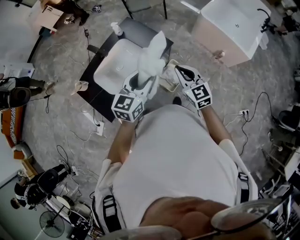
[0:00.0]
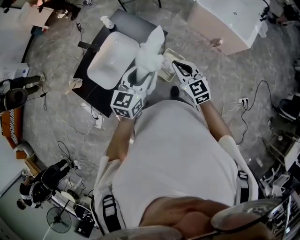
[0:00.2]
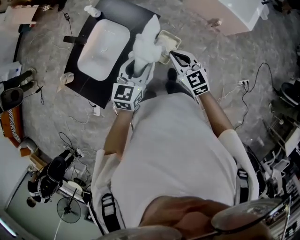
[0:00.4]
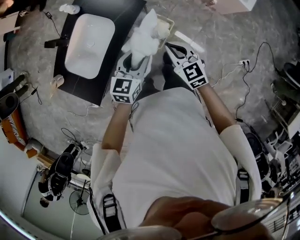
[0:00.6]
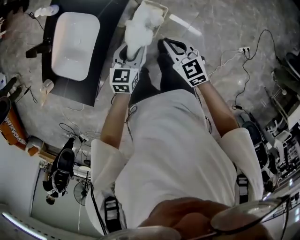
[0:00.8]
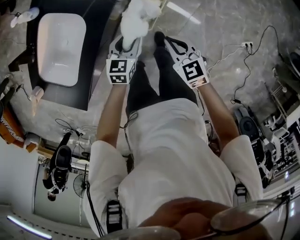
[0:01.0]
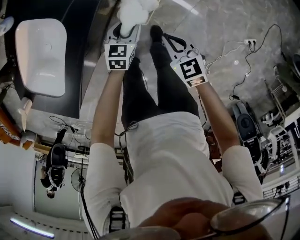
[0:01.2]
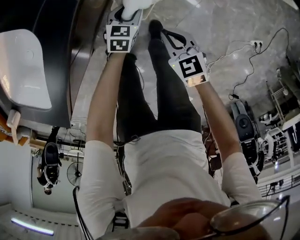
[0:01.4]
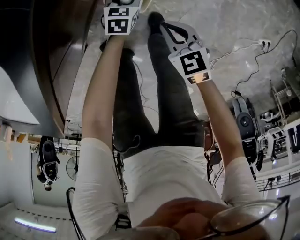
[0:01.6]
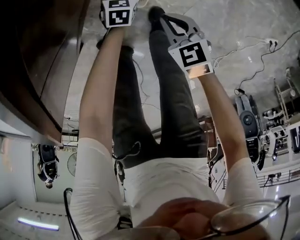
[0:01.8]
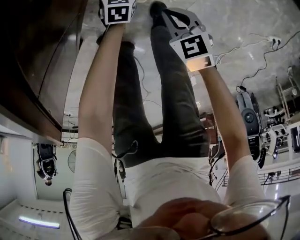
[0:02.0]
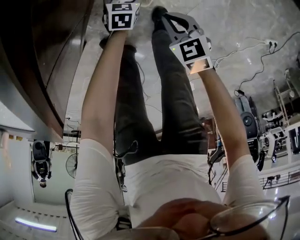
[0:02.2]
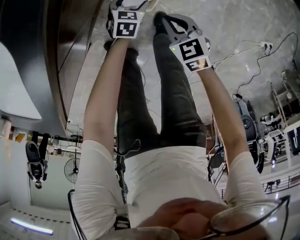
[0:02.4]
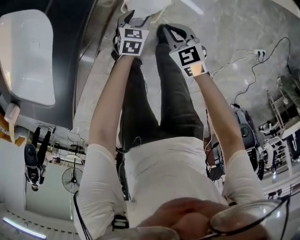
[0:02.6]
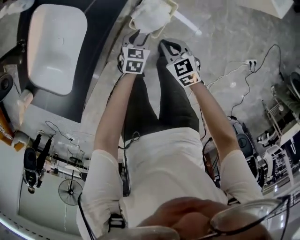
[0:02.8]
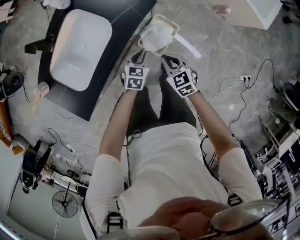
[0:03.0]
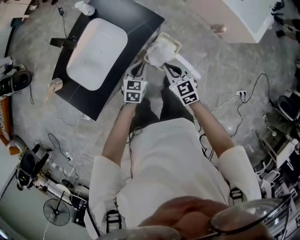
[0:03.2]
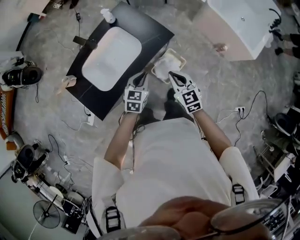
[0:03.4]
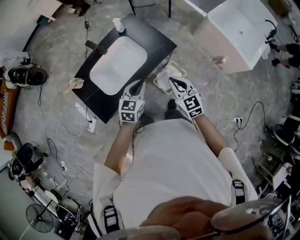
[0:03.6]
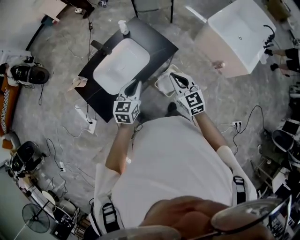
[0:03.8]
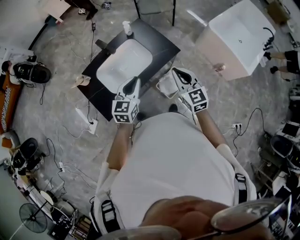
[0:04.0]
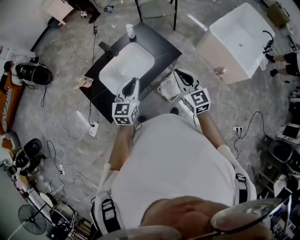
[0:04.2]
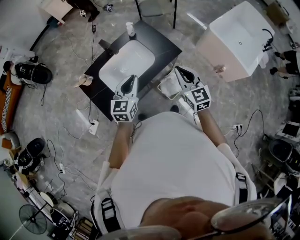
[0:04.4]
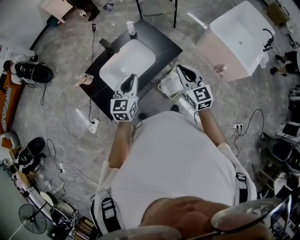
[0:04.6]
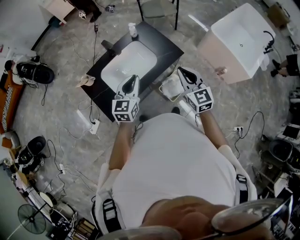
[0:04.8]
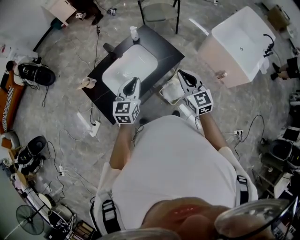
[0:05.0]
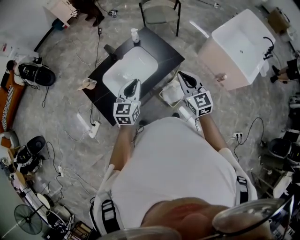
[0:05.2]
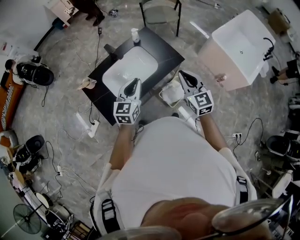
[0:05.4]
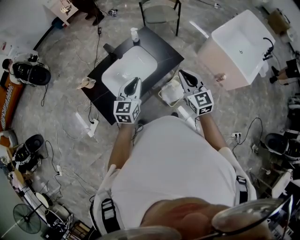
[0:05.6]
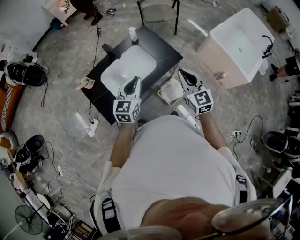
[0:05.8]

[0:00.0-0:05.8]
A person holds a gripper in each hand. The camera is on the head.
0:00.0 to 0:01.4: Both grippers travel together downward, some 60 cm. The right gripper turns by about 40 degrees. Meanwhile the left gripper angles its fingers downward, by some 40 degrees.
0:01.4 to 0:02.8: Both grippers travel together to the left, some 5 cm. The right gripper moves approximately 20 cm downward and comes back. The left gripper moves approximately 25 cm downward and comes back, and opens and closes again.
0:02.8 to 0:04.4: The right gripper goes approximately 50 cm upward, and angles its fingers upward, by roughly 30 degrees; the left gripper goes roughly 60 cm upward and to the left, and tilts its fingers approximately 40 degrees upward.
0:04.4 to 0:05.8: The grippers move only a little.

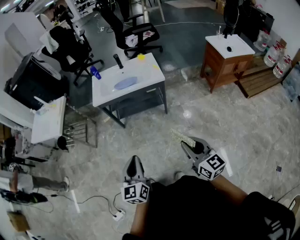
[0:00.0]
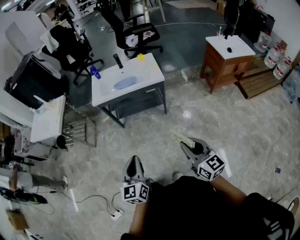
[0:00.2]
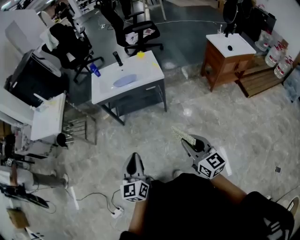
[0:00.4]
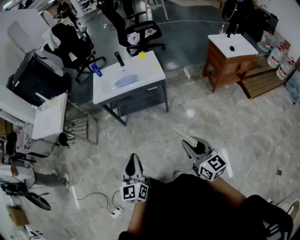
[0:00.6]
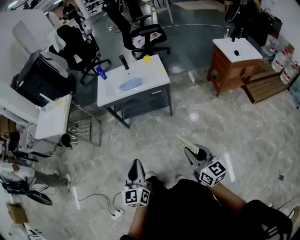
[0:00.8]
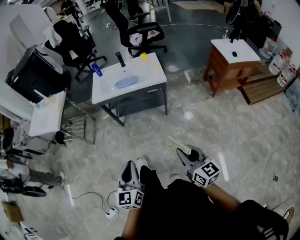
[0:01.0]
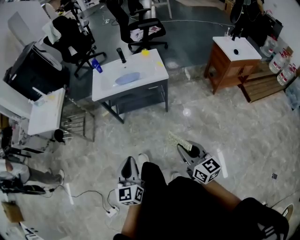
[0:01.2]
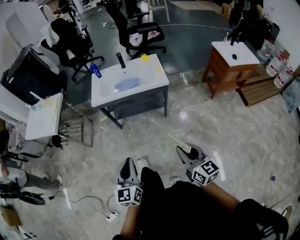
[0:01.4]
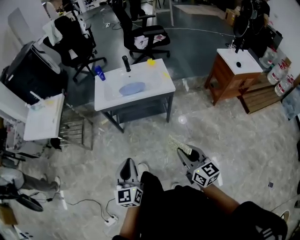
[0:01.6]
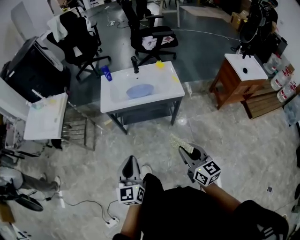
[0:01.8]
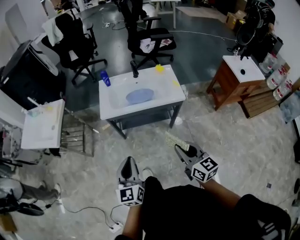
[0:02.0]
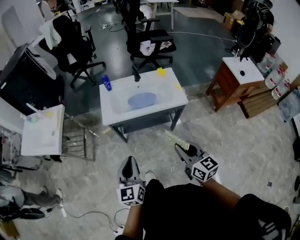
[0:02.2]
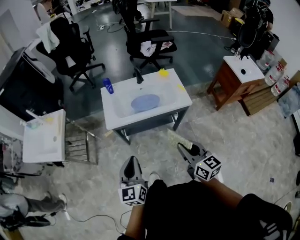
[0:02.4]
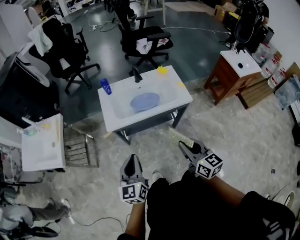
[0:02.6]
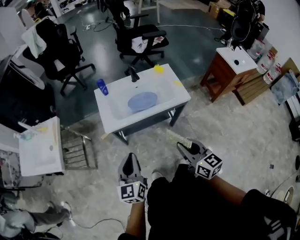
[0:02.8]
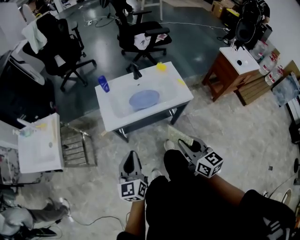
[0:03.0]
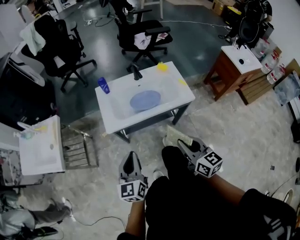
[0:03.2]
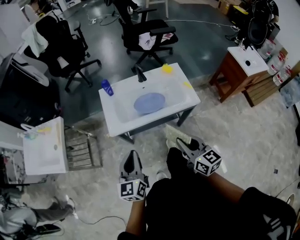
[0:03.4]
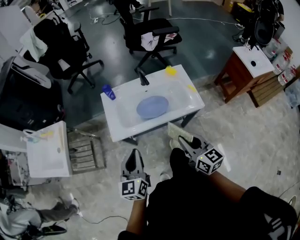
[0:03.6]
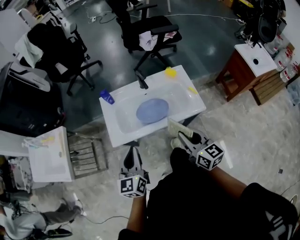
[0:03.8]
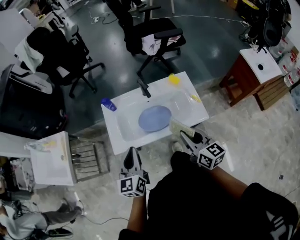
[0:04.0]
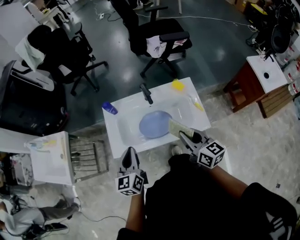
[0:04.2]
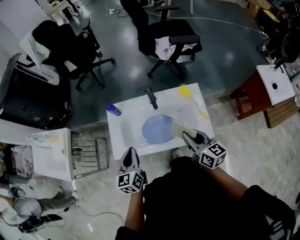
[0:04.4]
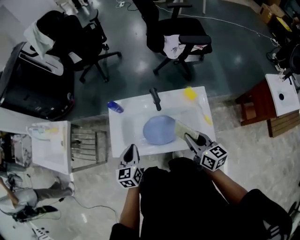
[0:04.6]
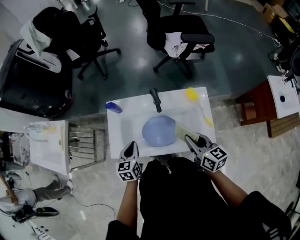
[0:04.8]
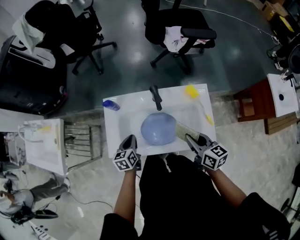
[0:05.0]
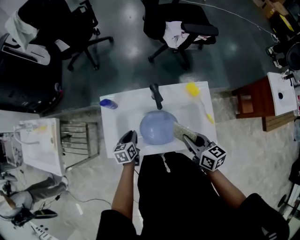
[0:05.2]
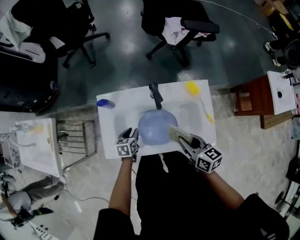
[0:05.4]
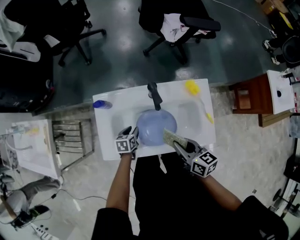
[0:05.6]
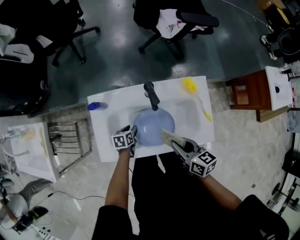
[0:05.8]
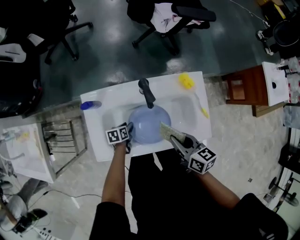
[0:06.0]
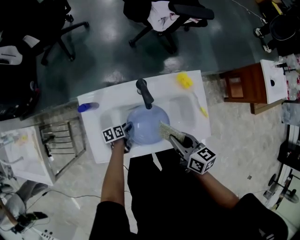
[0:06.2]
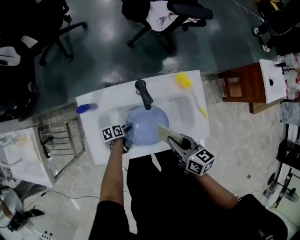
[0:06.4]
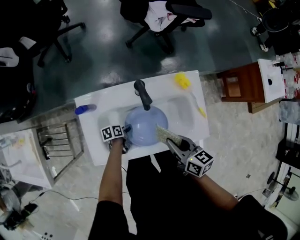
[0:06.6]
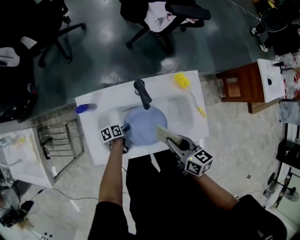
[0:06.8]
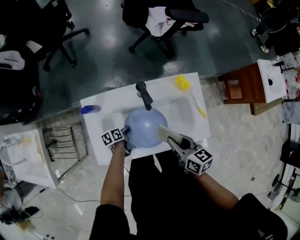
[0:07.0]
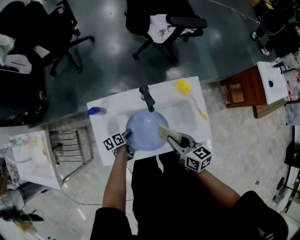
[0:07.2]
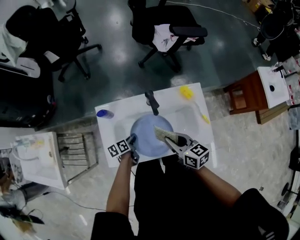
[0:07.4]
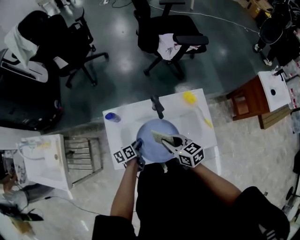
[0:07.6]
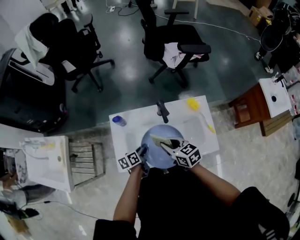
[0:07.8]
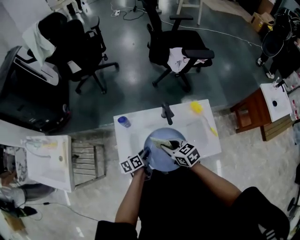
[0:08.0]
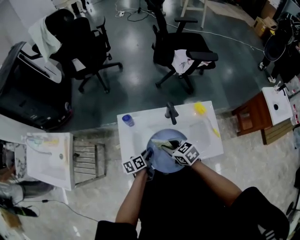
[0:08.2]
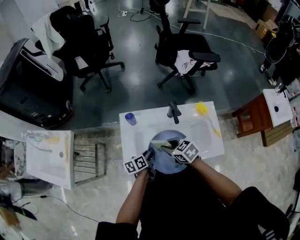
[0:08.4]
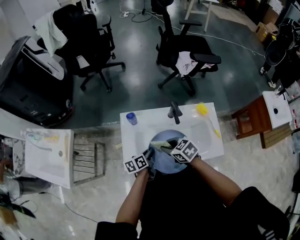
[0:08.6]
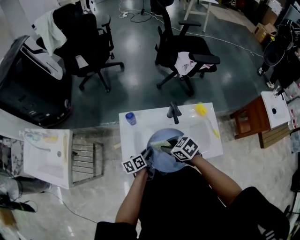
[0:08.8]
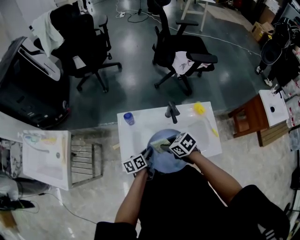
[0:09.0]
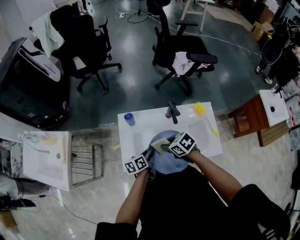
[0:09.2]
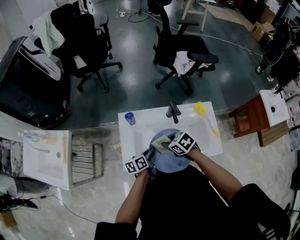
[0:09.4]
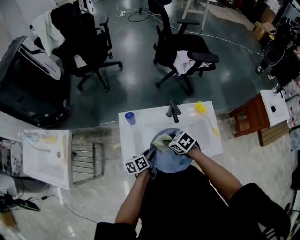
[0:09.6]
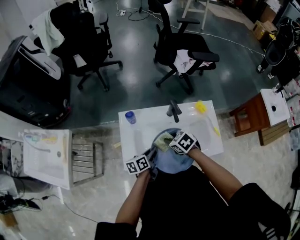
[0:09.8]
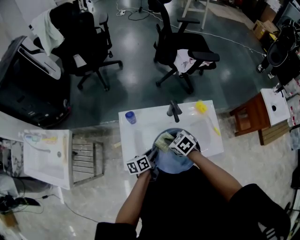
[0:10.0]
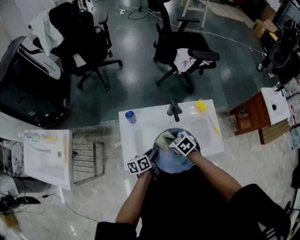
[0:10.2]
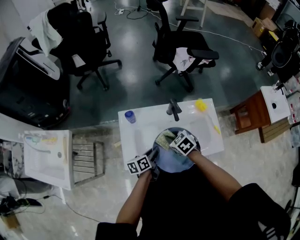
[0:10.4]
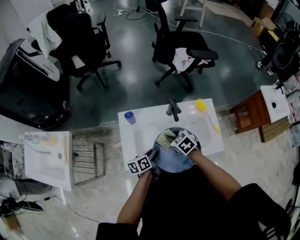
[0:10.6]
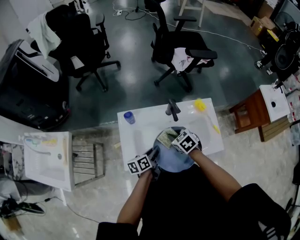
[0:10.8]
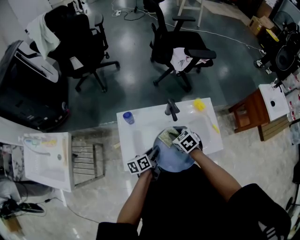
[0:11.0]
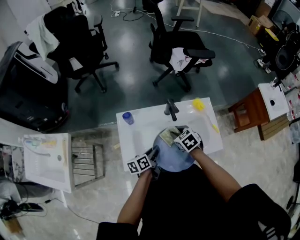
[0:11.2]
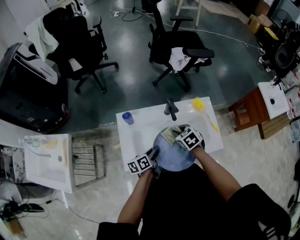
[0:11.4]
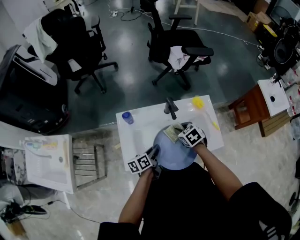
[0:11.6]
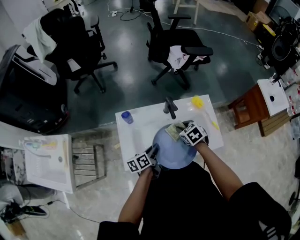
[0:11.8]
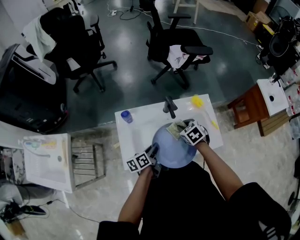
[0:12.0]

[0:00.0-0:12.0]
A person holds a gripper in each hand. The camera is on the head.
0:00.0 to 0:01.6: The grippers both shift forward and to the left by roughly 15 cm.
0:01.6 to 0:03.0: Both grippers travel together forward and to the left, some 30 cm.
0:03.0 to 0:04.4: The two grippers go approximately 30 cm forward.
0:04.4 to 0:06.0: The left gripper is displaced downward by roughly 35 cm, tips its fingers downward by roughly 30 degrees, and opens up, while the right gripper goes some 15 cm downward and forward.
0:06.0 to 0:07.6: The right gripper shifts approximately 10 cm to the left. The left gripper moves upward, roughly 15 cm, changes its angle by some 20 degrees, and closes up.
0:07.6 to 0:09.0: The right gripper goes about 10 cm to the left, and turns by some 30 degrees. The left gripper shifts by some 5 cm.
0:09.0 to 0:10.4: The right gripper ends up about 5 cm from where it was, and rotates approximately 20 degrees.
0:10.4 to 0:12.0: The right gripper goes some 10 cm to the right.

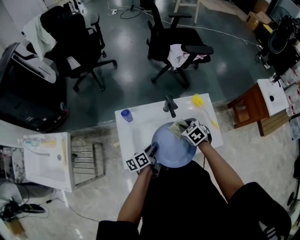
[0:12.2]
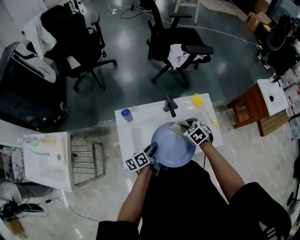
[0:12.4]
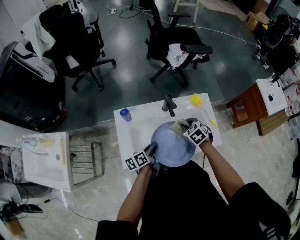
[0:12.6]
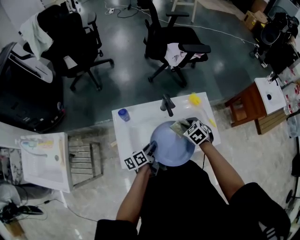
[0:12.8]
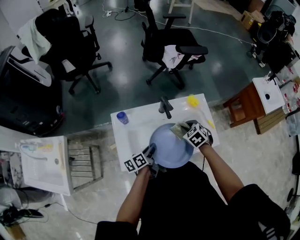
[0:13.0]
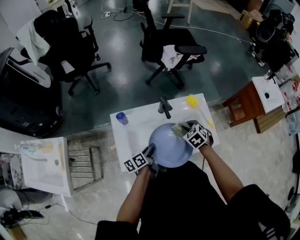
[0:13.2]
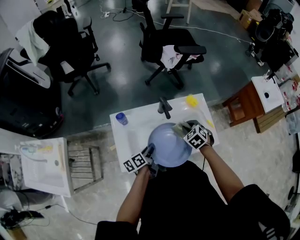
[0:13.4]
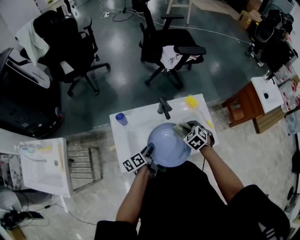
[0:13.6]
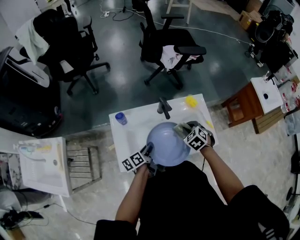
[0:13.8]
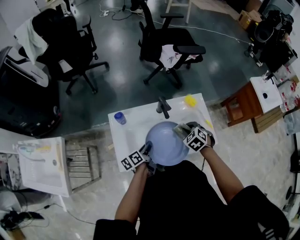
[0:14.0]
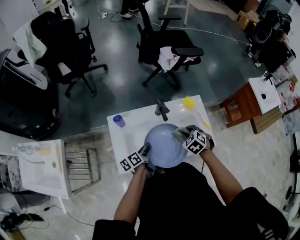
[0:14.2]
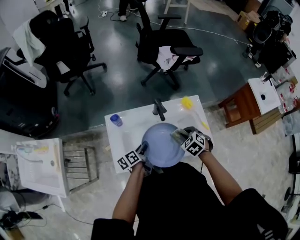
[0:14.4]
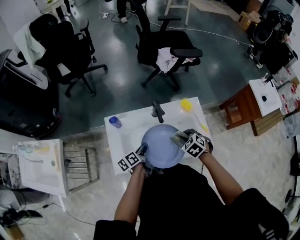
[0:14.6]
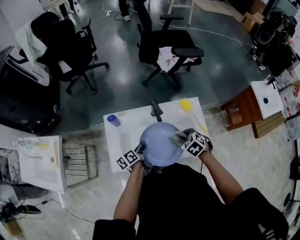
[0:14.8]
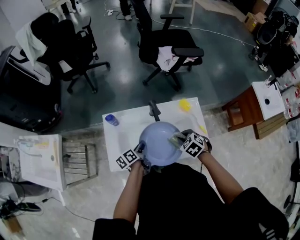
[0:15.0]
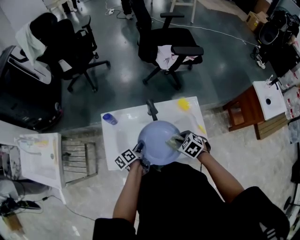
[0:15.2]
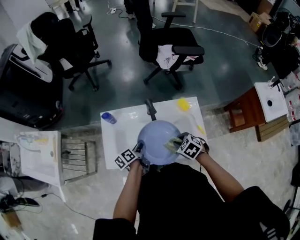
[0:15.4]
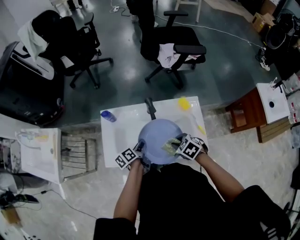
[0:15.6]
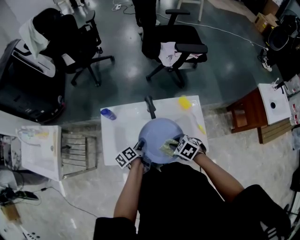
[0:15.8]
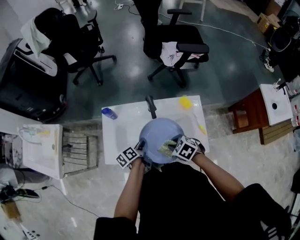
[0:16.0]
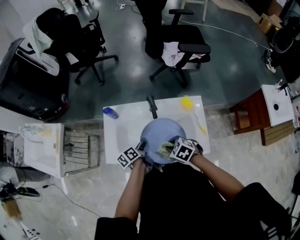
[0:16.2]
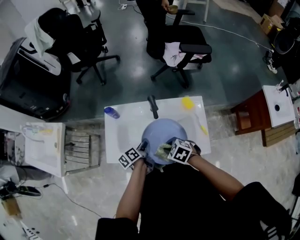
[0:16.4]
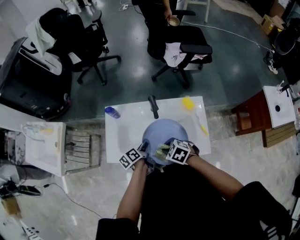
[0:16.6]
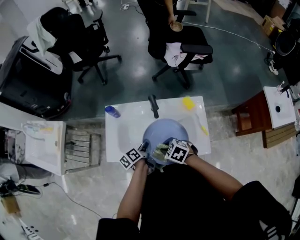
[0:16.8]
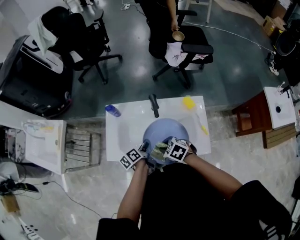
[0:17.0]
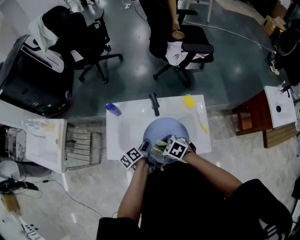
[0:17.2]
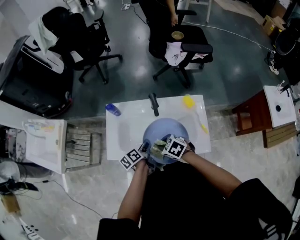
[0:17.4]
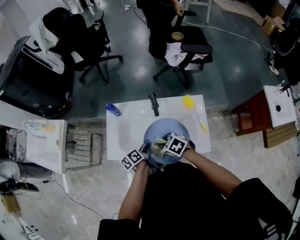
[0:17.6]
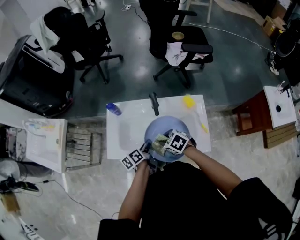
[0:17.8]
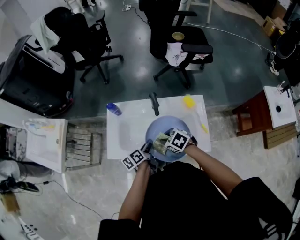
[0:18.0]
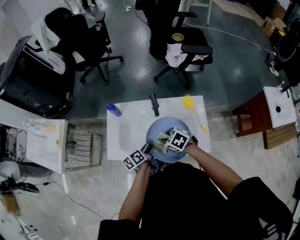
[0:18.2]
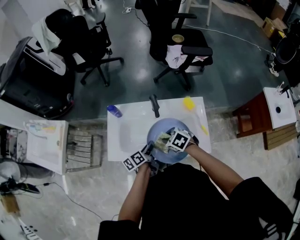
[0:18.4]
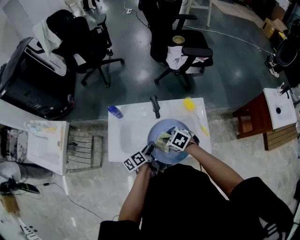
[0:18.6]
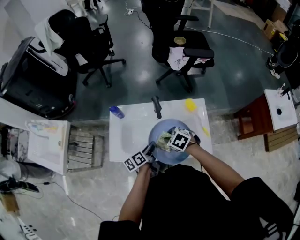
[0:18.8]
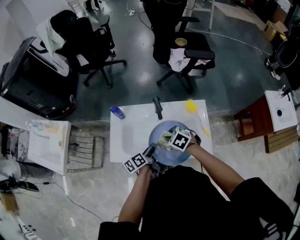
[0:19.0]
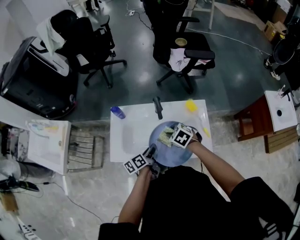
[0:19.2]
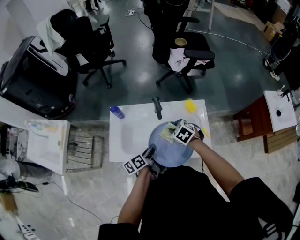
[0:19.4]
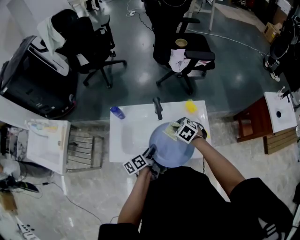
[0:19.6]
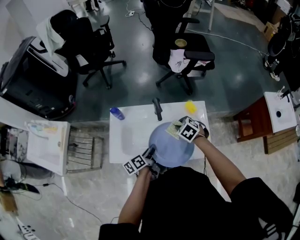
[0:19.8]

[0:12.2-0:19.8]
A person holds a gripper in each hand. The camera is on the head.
0:12.2 to 0:13.8: The right gripper is displaced to the right by approximately 5 cm.
0:13.8 to 0:15.2: The right gripper ends up some 5 cm from where it was.
0:15.2 to 0:16.8: The right gripper moves to the left, approximately 10 cm, and changes its angle by some 20 degrees.
0:16.8 to 0:18.2: There are only small adjustments of the grippers.
0:18.2 to 0:19.8: The right gripper travels to the right and forward by roughly 10 cm.
